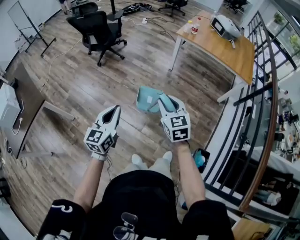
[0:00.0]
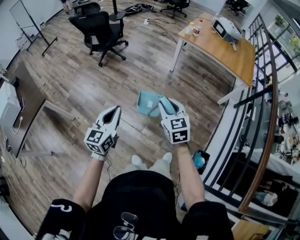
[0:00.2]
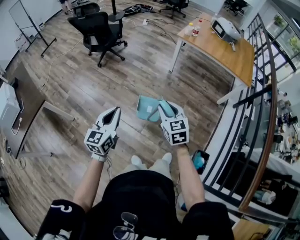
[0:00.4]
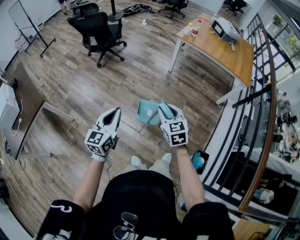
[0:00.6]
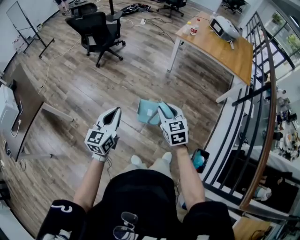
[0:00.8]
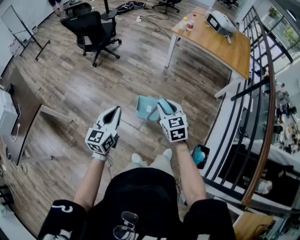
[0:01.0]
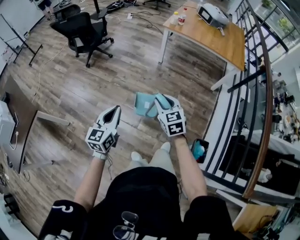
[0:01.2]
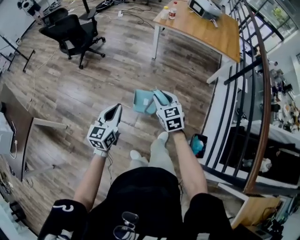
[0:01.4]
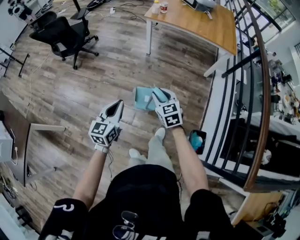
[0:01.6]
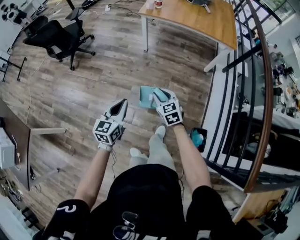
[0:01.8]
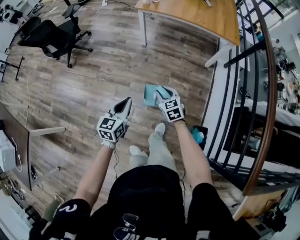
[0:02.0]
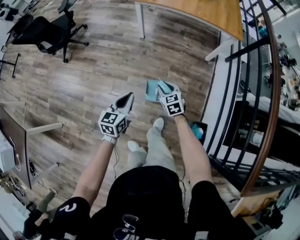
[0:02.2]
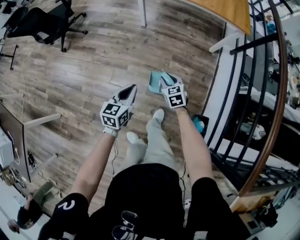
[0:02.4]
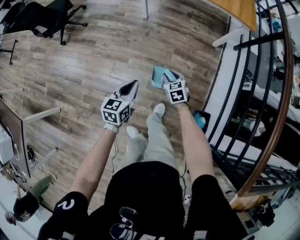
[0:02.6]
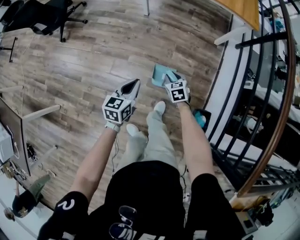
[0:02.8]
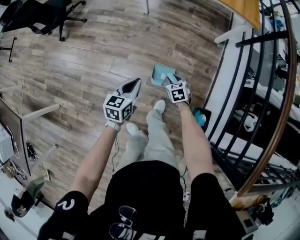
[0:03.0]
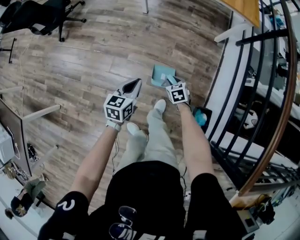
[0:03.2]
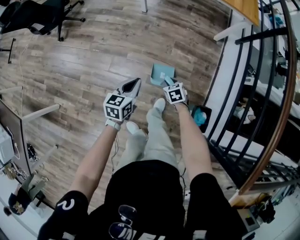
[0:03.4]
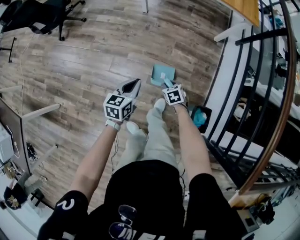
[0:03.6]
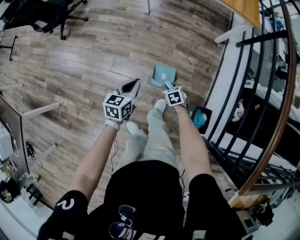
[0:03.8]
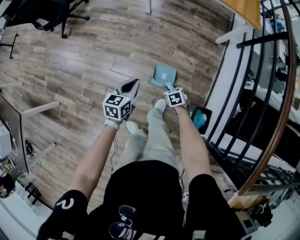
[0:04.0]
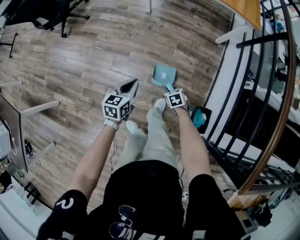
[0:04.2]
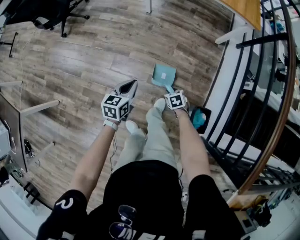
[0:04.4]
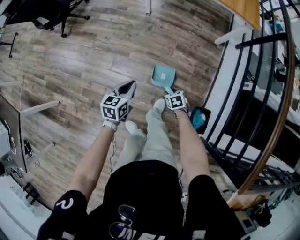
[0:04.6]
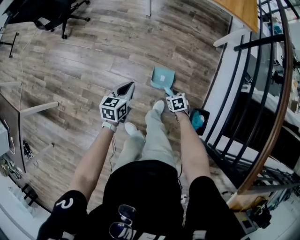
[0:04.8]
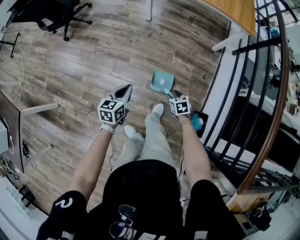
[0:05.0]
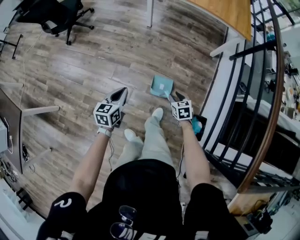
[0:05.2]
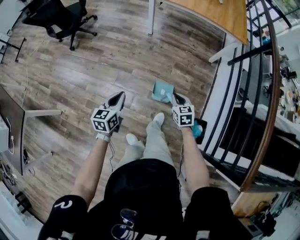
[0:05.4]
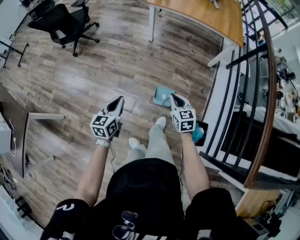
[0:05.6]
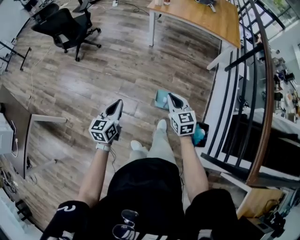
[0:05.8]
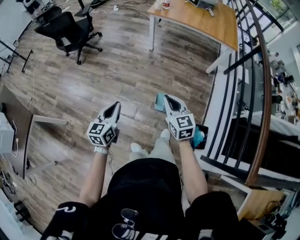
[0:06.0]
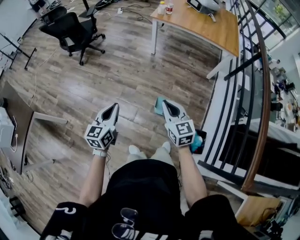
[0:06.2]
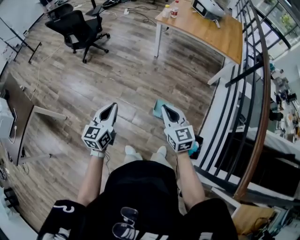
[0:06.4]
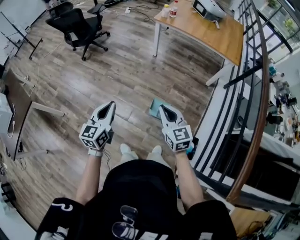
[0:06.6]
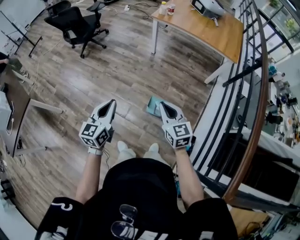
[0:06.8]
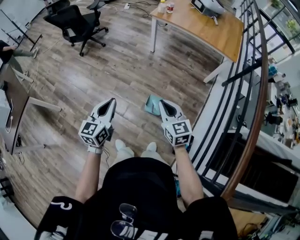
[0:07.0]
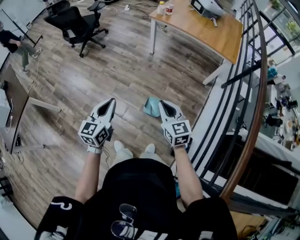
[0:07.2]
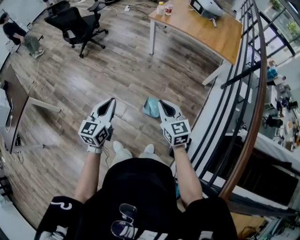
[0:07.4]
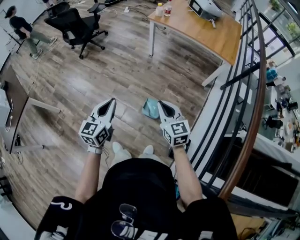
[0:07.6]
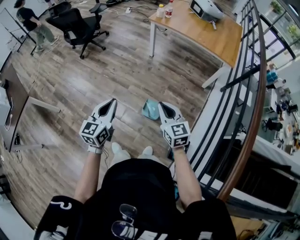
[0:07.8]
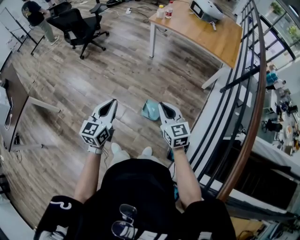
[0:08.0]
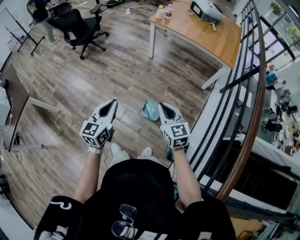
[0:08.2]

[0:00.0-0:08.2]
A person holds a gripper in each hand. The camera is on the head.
0:00.0 to 0:01.6: The right gripper shifts approximately 15 cm downward, to the right and forward. Meanwhile the left gripper moves to the right, forward and downward, approximately 20 cm.
0:01.6 to 0:03.2: The left gripper heads downward, to the right and forward, covering approximately 30 cm, and rotates approximately 20 degrees. Meanwhile the right gripper is displaced downward and to the right by about 40 cm, and rotates roughly 30 degrees.
0:03.2 to 0:05.0: The right gripper travels backward by roughly 10 cm; the left gripper heads to the left and backward, covering some 10 cm.
0:05.0 to 0:06.6: The left gripper travels upward and backward by roughly 30 cm, and changes its angle by about 30 degrees. The right gripper is displaced upward by approximately 40 cm, points its fingers approximately 40 degrees further upward, and closes.
0:06.6 to 0:08.2: The grippers both shift to the right by about 10 cm.

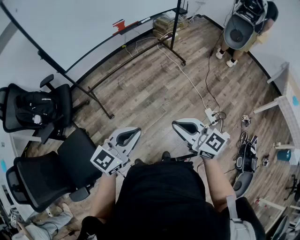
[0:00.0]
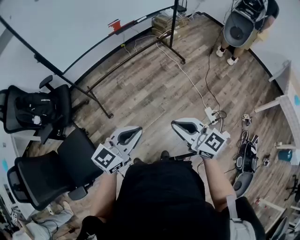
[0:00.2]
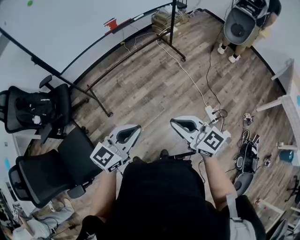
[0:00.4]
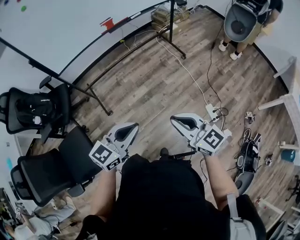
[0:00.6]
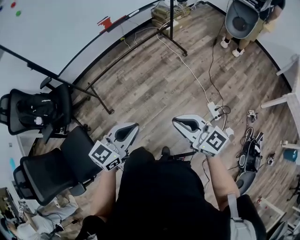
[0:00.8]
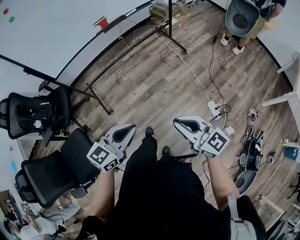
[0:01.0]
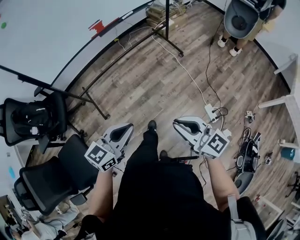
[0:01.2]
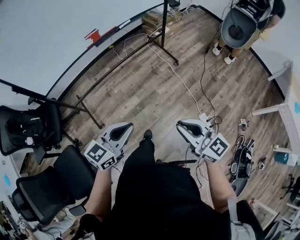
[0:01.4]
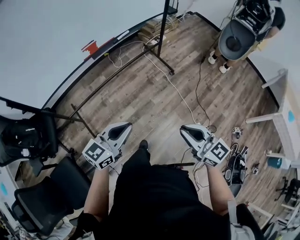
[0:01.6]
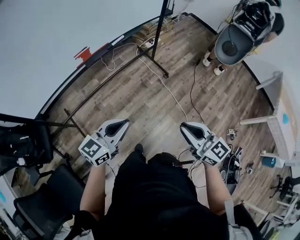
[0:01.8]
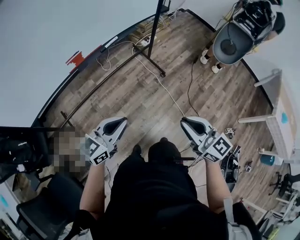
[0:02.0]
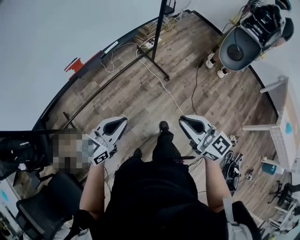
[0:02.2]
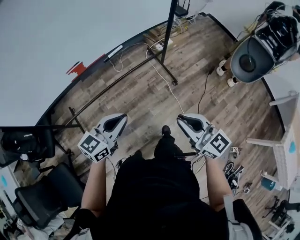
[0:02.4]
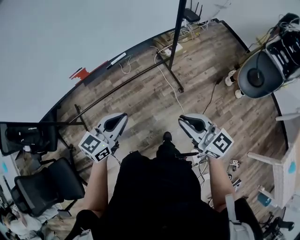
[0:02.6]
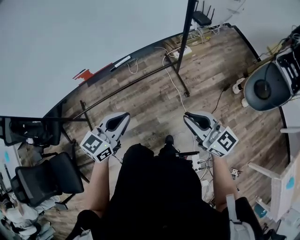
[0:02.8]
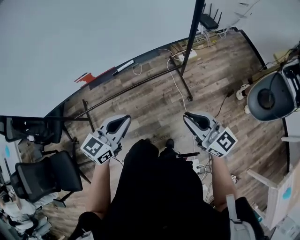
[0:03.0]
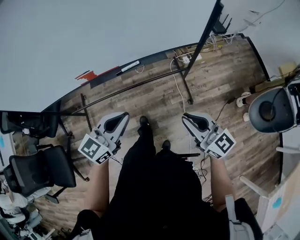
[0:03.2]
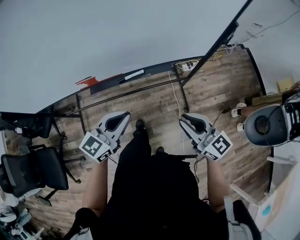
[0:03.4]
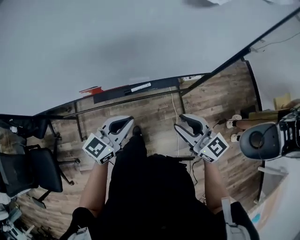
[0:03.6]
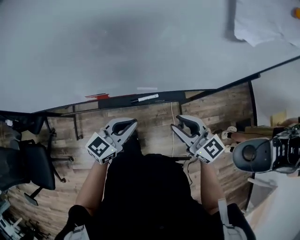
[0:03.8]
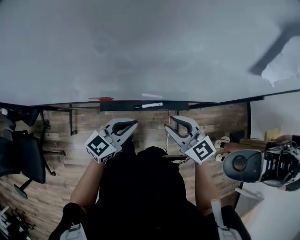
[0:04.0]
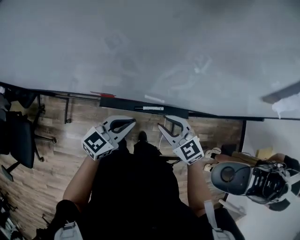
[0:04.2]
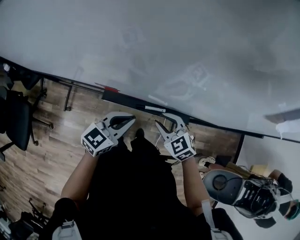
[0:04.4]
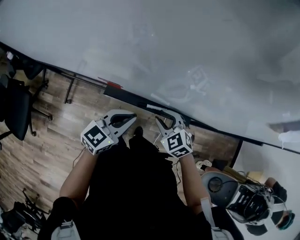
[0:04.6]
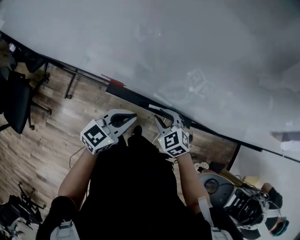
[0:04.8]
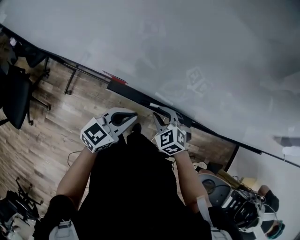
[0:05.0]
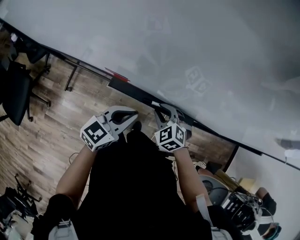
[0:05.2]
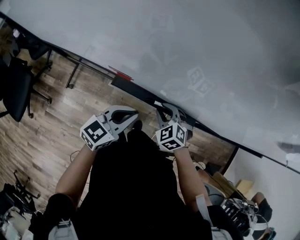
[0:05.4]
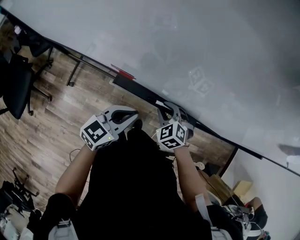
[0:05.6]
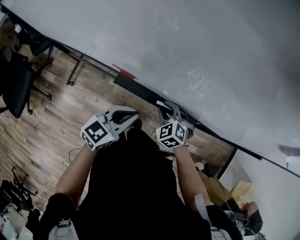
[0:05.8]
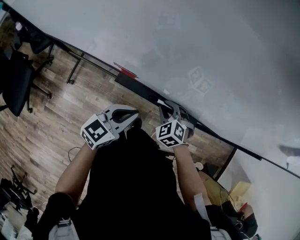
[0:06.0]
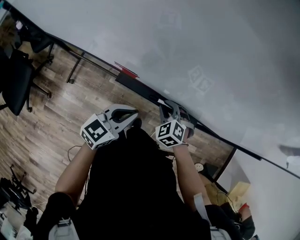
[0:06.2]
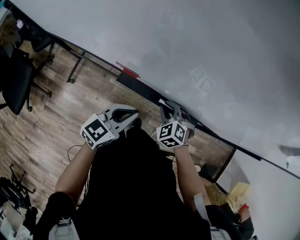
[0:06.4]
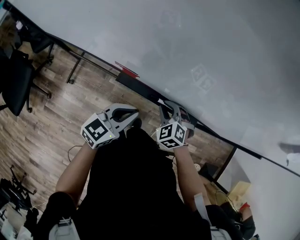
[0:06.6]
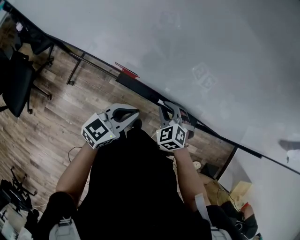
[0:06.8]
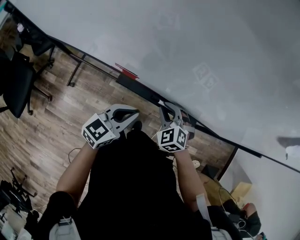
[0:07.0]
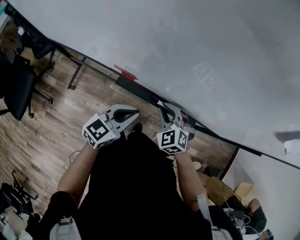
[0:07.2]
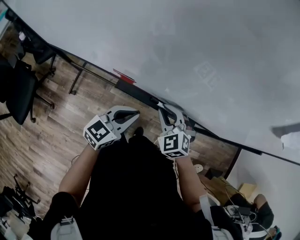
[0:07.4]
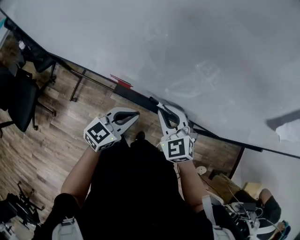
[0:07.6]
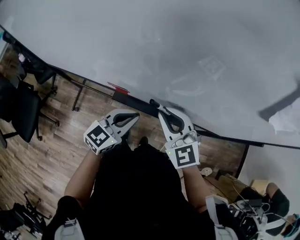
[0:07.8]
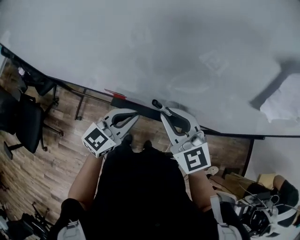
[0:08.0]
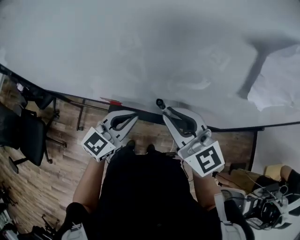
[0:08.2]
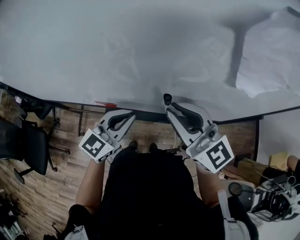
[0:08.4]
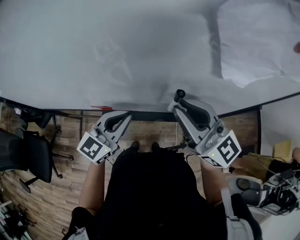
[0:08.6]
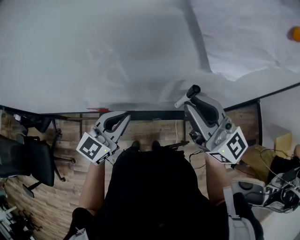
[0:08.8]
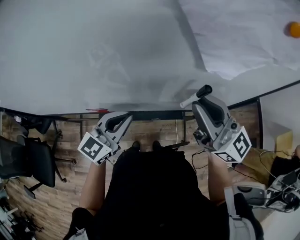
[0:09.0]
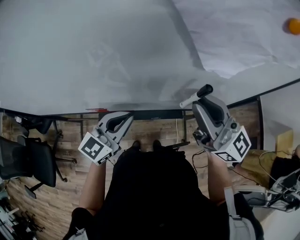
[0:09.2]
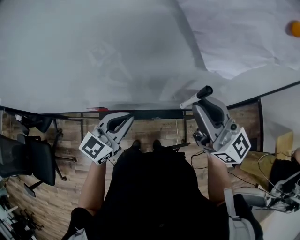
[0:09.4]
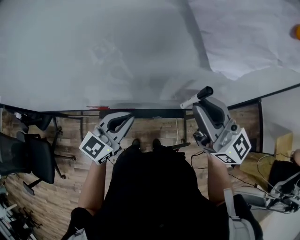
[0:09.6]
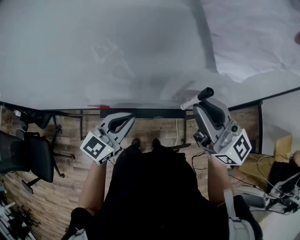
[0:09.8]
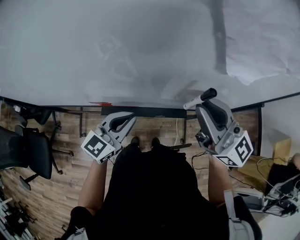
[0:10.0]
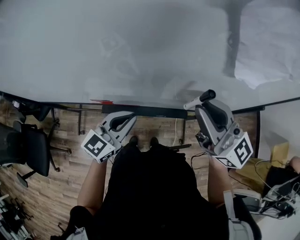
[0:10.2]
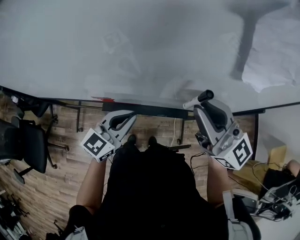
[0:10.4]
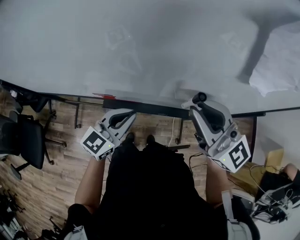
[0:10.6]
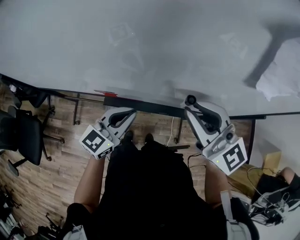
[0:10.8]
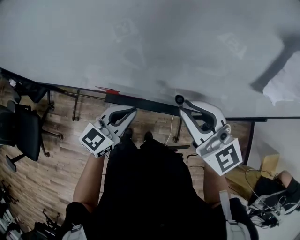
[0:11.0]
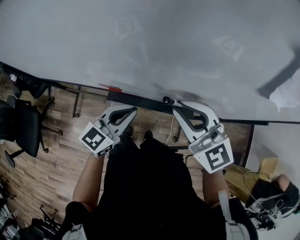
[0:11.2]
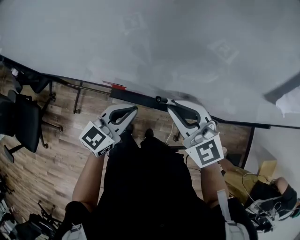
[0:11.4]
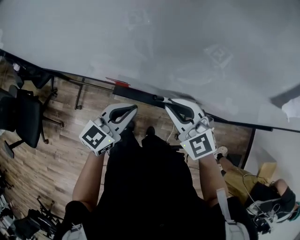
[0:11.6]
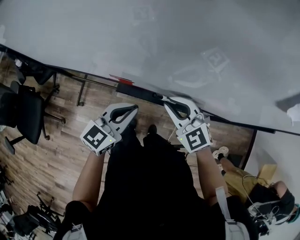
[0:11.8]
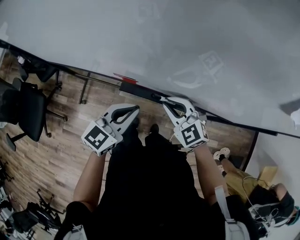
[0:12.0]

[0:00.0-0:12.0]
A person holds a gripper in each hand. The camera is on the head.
0:00.0 to 0:01.6: The right gripper heads forward and to the right, covering approximately 30 cm; the left gripper heads forward, covering approximately 30 cm.
0:01.6 to 0:03.0: Both grippers travel together forward, some 40 cm. The left gripper changes its angle by roughly 20 degrees, while the right gripper turns by approximately 20 degrees.
0:03.0 to 0:04.4: Both grippers move forward and to the left, some 30 cm. The right gripper tilts its fingers roughly 40 degrees downward, and opens its fingers. The left gripper changes its angle by about 20 degrees.
0:04.4 to 0:06.0: The right gripper is displaced downward by about 10 cm, and turns by about 20 degrees.
0:06.0 to 0:07.6: The right gripper heads upward, covering roughly 15 cm, and turns by about 30 degrees.
0:07.6 to 0:09.0: The right gripper shifts approximately 30 cm upward and to the right, and angles its fingers upward, by roughly 50 degrees. Meanwhile the left gripper heads upward and to the right, covering some 15 cm.
0:09.0 to 0:10.4: The grippers stay close to where they were, moving slightly.
0:10.4 to 0:12.0: The left gripper moves to the left and downward, some 10 cm, while the right gripper moves downward and to the left, about 30 cm, and points its fingers approximately 40 degrees further downward.

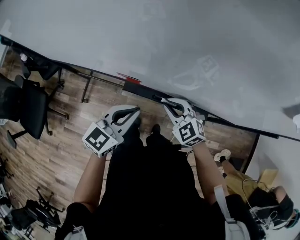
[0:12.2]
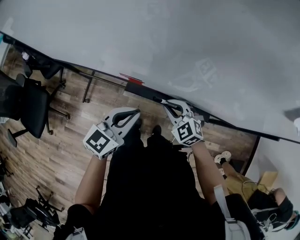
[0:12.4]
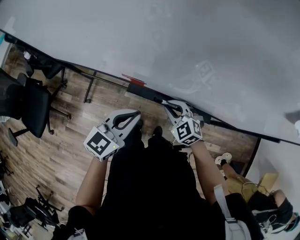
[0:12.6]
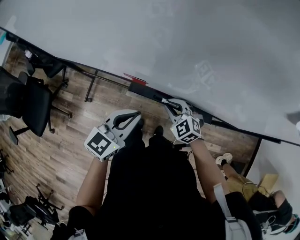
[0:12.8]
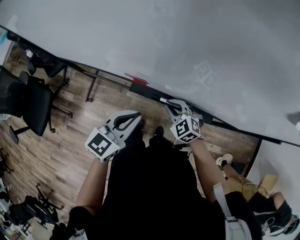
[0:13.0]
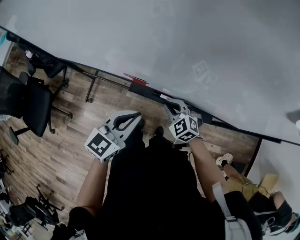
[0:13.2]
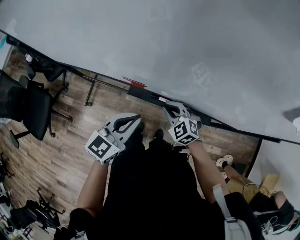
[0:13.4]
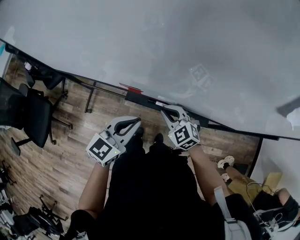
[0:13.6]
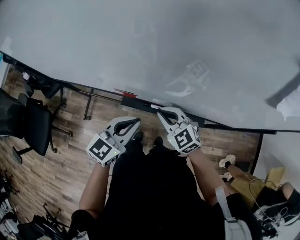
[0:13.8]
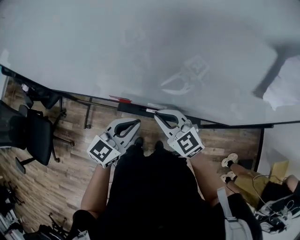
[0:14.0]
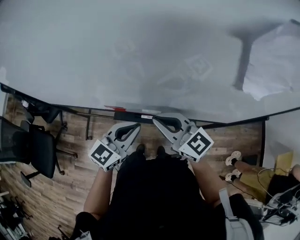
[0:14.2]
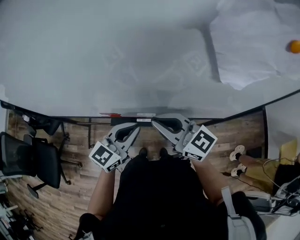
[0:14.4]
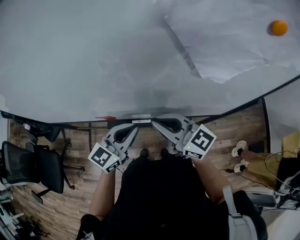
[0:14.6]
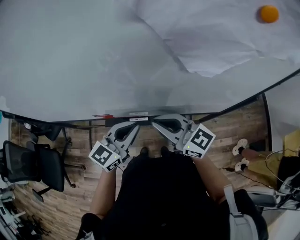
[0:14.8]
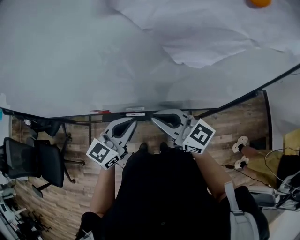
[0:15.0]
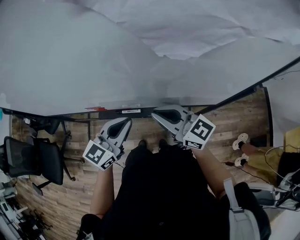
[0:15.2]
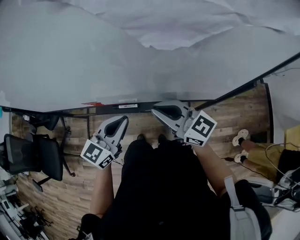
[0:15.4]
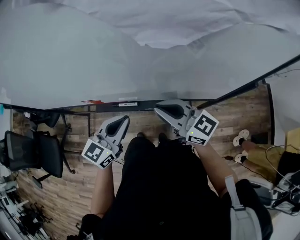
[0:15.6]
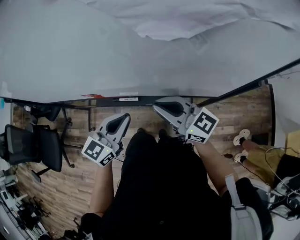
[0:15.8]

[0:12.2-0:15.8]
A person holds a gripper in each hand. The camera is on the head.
0:12.2 to 0:14.0: The left gripper changes place by some 5 cm; the right gripper moves upward, approximately 10 cm.
0:14.0 to 0:15.8: The two grippers go approximately 15 cm to the right. The right gripper rotates some 30 degrees.
